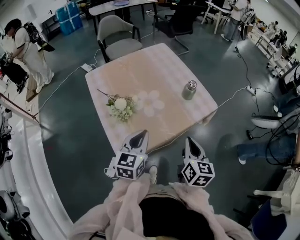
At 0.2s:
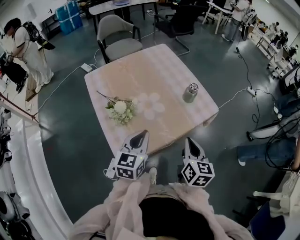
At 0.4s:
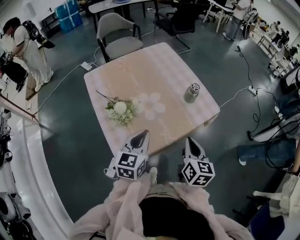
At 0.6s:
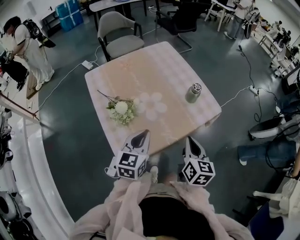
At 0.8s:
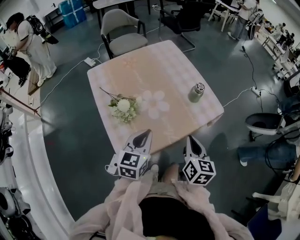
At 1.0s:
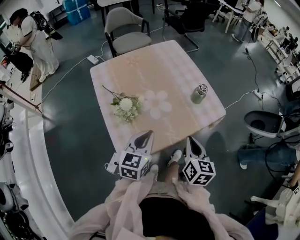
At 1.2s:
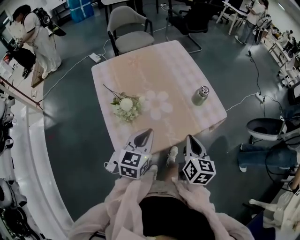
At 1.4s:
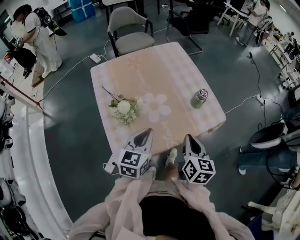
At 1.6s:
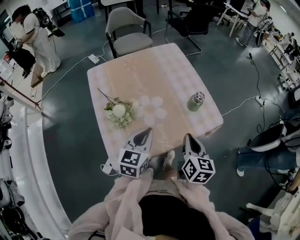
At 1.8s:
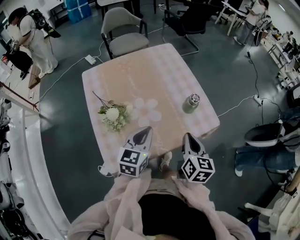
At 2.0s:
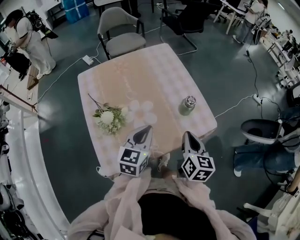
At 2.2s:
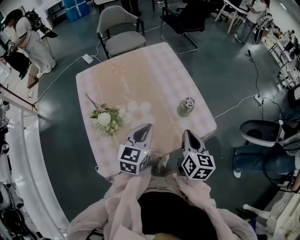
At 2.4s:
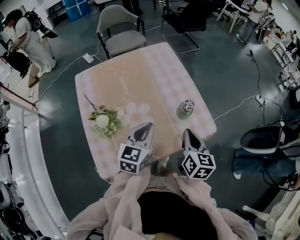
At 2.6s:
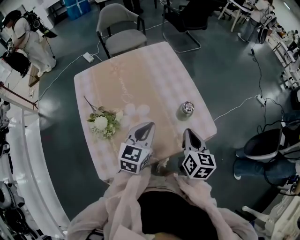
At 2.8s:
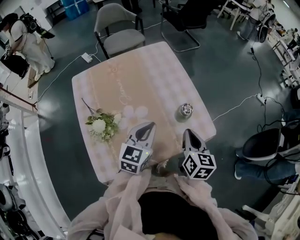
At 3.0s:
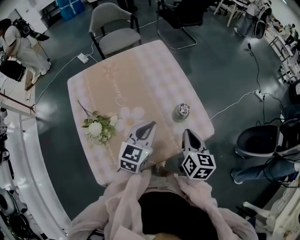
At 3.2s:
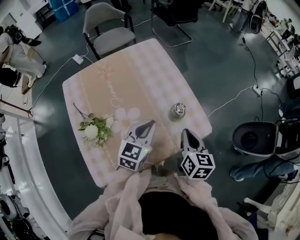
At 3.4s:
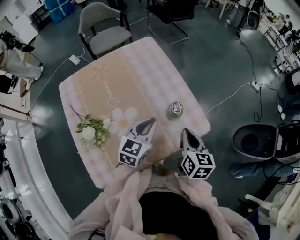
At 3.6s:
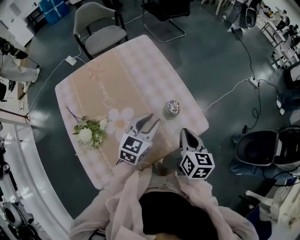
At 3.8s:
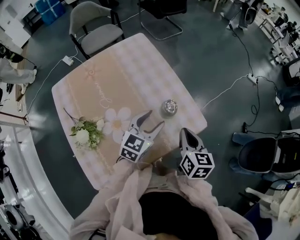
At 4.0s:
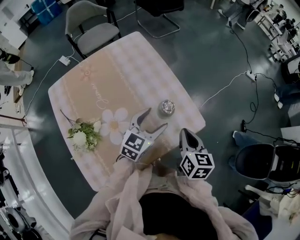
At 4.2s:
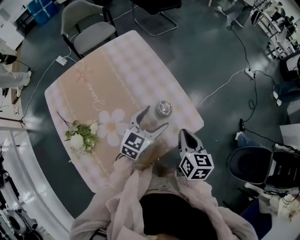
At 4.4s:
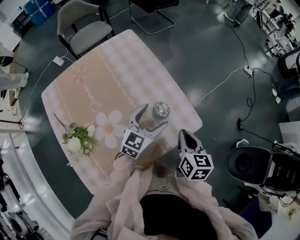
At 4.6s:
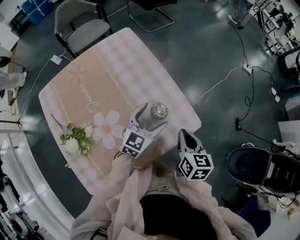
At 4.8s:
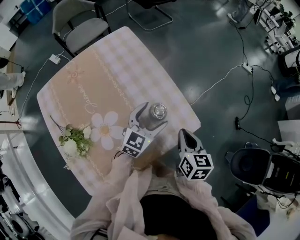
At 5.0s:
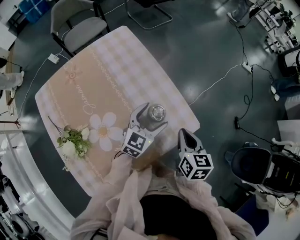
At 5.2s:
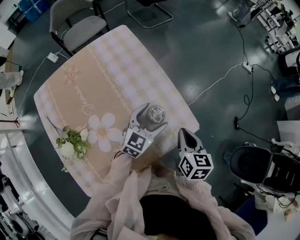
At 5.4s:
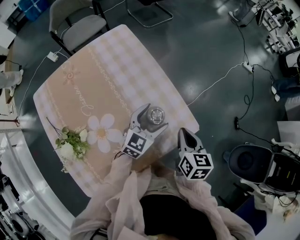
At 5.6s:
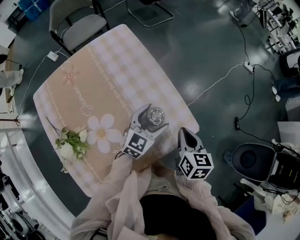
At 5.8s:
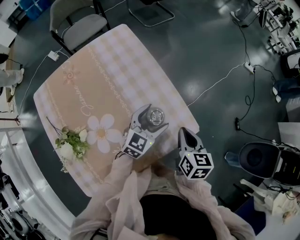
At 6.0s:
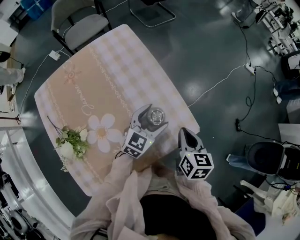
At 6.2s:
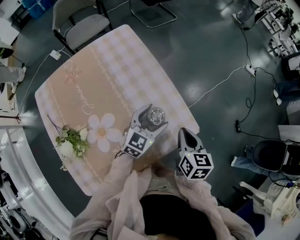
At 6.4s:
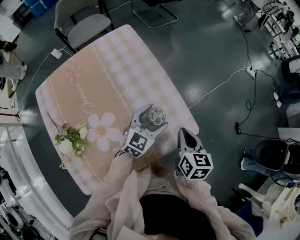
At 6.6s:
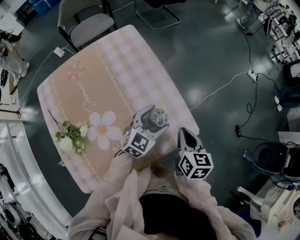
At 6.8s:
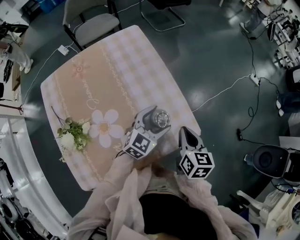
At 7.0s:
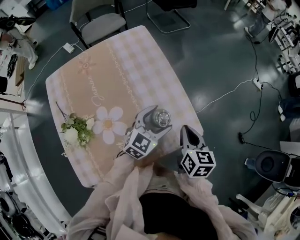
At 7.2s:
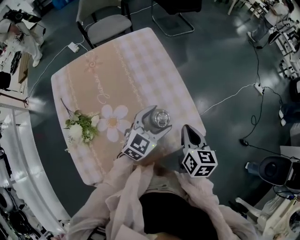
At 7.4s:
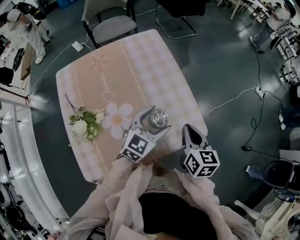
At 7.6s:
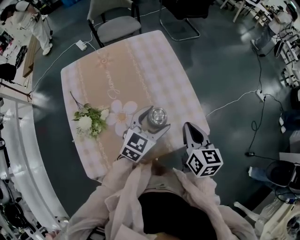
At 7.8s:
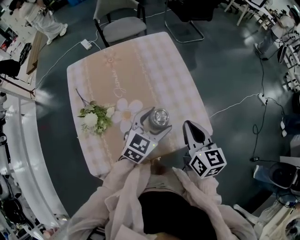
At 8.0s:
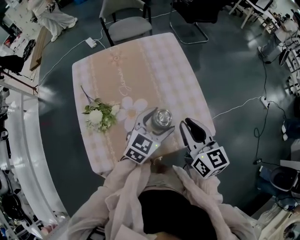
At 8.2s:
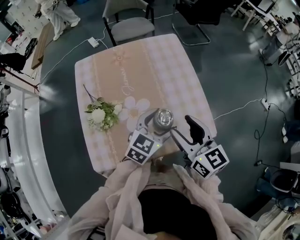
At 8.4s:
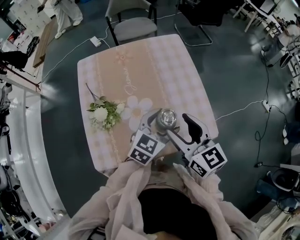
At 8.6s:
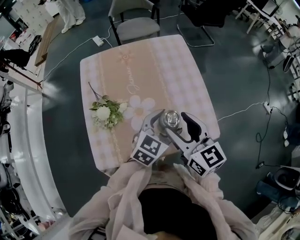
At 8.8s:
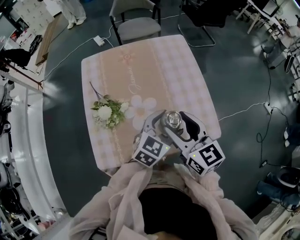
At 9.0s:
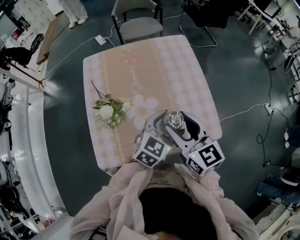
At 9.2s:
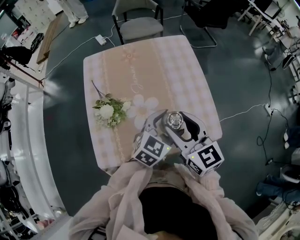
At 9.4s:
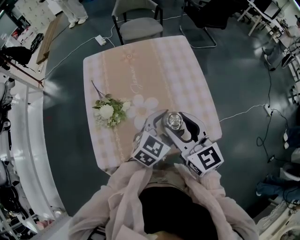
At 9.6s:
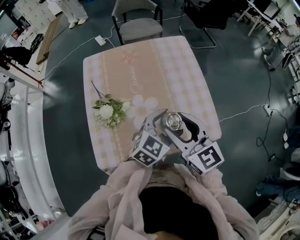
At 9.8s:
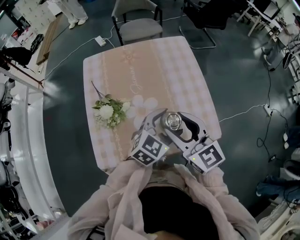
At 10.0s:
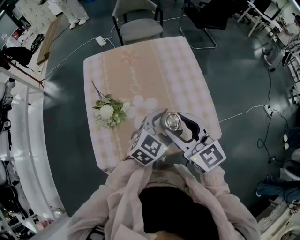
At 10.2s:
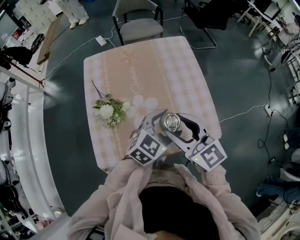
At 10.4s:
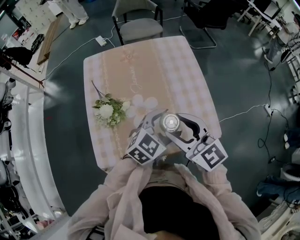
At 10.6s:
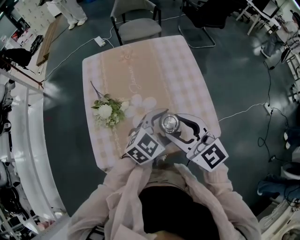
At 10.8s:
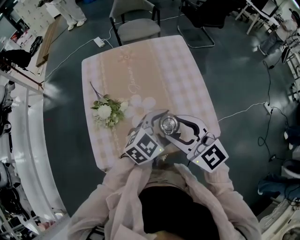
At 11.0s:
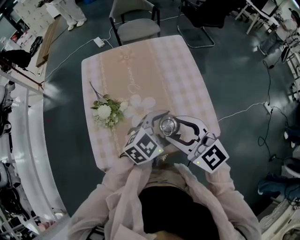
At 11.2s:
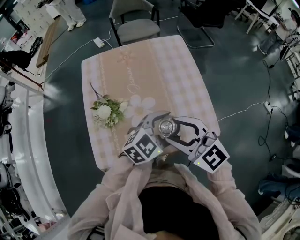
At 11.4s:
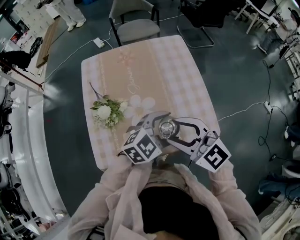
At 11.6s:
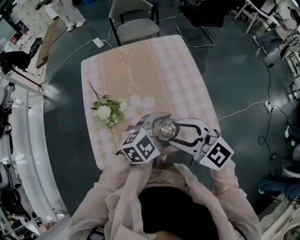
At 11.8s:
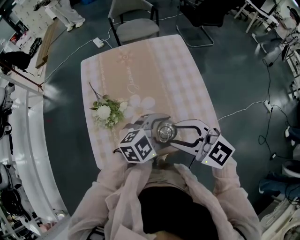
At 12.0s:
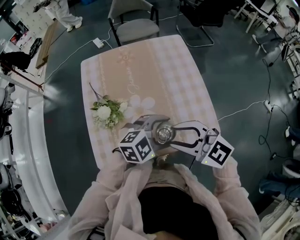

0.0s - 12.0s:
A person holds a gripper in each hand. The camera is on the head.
0.0s - 1.6s: Both grippers move forward, about 10 cm.
1.6s - 3.0s: The two grippers go roughly 15 cm forward and to the right.
3.0s - 4.4s: The left gripper is displaced to the right, forward and downward by roughly 15 cm, and opens its fingers, while the right gripper travels to the right by about 5 cm.
4.4s - 6.0s: The right gripper changes place by approximately 5 cm. Meanwhile the left gripper moves about 5 cm.
6.0s - 7.6s: The left gripper shifts some 15 cm upward, backward and to the left; the right gripper heads upward and to the left, covering roughly 10 cm.
7.6s - 9.0s: The right gripper shifts about 15 cm to the left and upward, swivels approximately 30 degrees, and opens its fingers. Meanwhile the left gripper moves approximately 5 cm.
9.0s - 10.4s: There are only small adjustments of the grippers.
10.4s - 12.0s: The left gripper changes its angle by some 30 degrees. The right gripper changes place by about 5 cm, and turns by approximately 30 degrees.

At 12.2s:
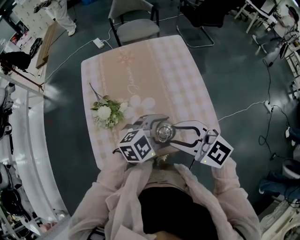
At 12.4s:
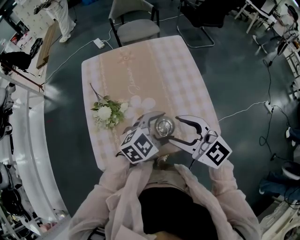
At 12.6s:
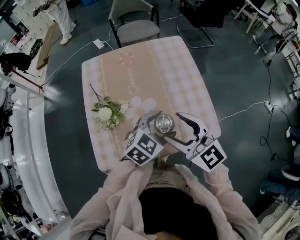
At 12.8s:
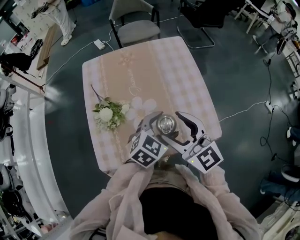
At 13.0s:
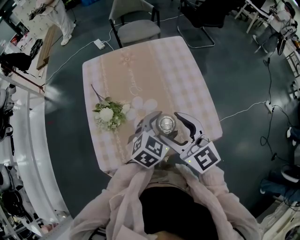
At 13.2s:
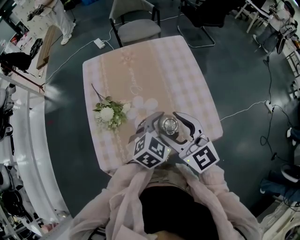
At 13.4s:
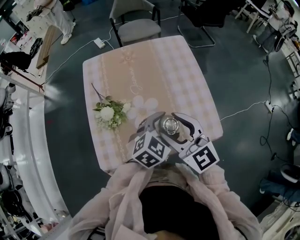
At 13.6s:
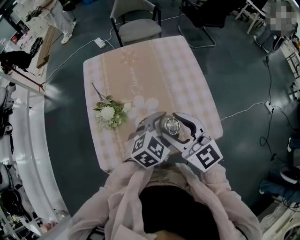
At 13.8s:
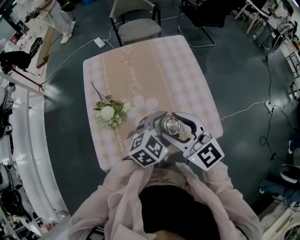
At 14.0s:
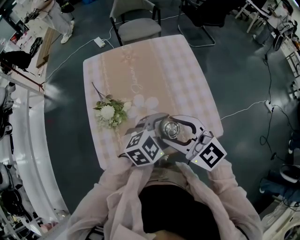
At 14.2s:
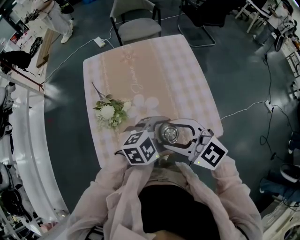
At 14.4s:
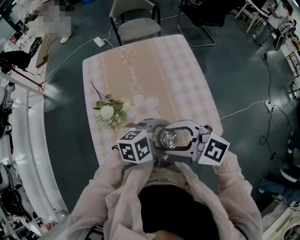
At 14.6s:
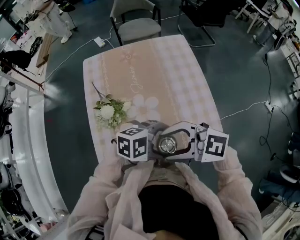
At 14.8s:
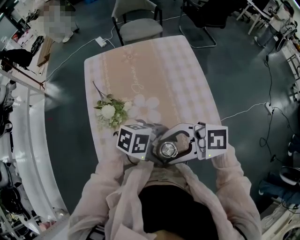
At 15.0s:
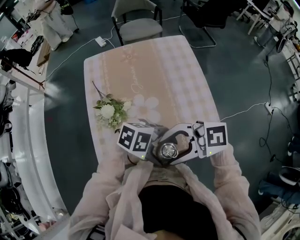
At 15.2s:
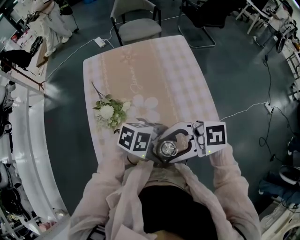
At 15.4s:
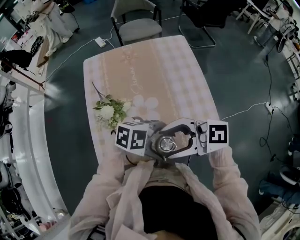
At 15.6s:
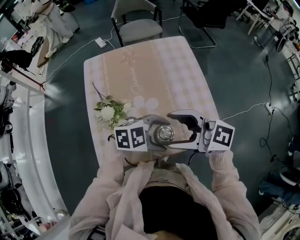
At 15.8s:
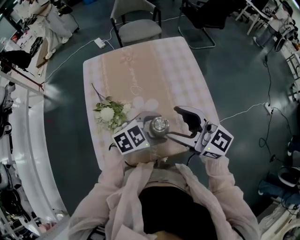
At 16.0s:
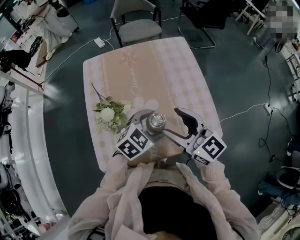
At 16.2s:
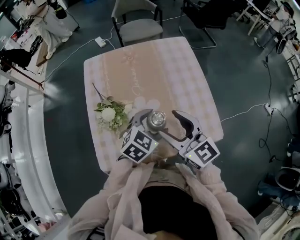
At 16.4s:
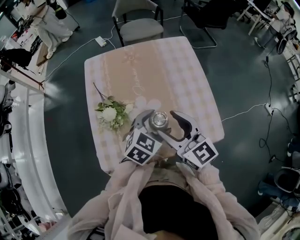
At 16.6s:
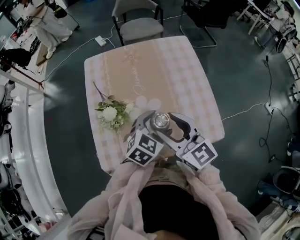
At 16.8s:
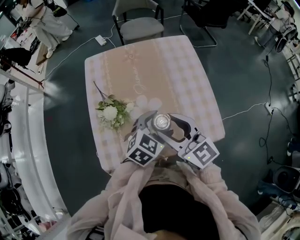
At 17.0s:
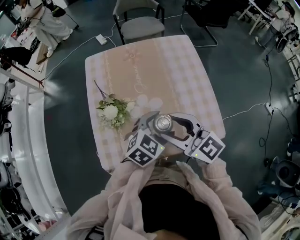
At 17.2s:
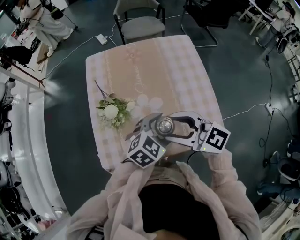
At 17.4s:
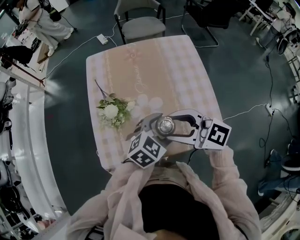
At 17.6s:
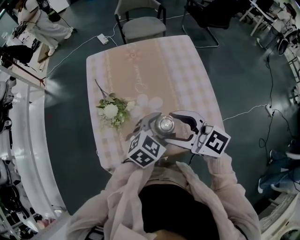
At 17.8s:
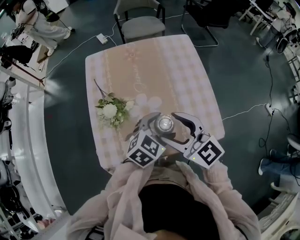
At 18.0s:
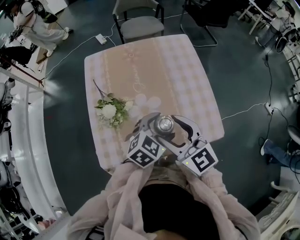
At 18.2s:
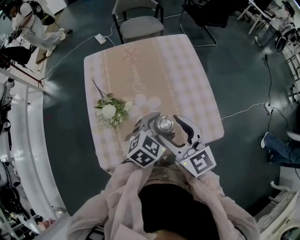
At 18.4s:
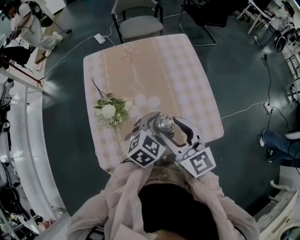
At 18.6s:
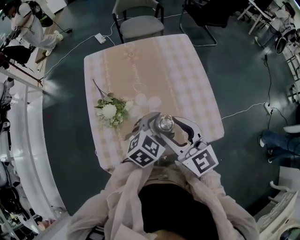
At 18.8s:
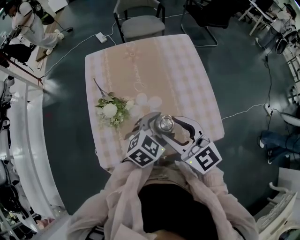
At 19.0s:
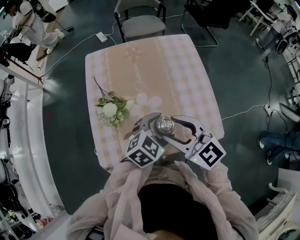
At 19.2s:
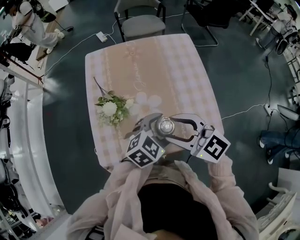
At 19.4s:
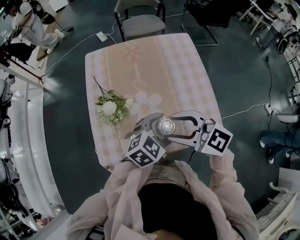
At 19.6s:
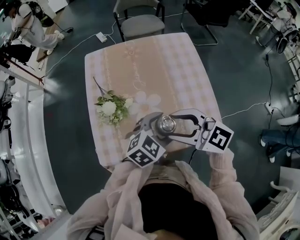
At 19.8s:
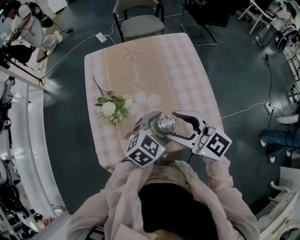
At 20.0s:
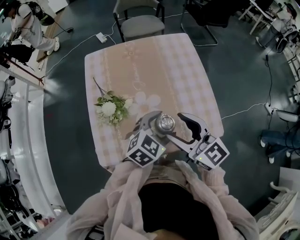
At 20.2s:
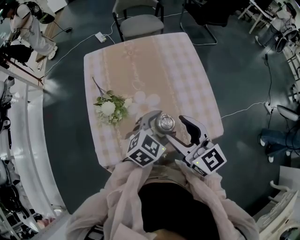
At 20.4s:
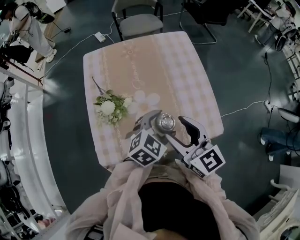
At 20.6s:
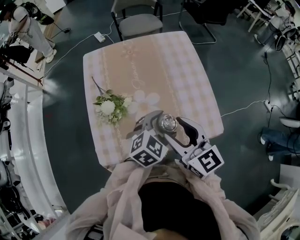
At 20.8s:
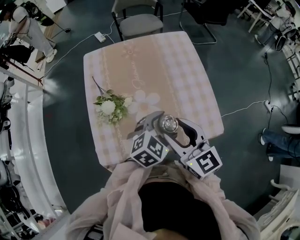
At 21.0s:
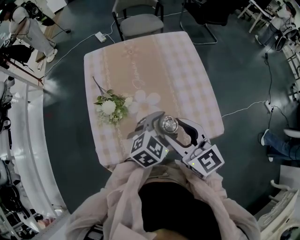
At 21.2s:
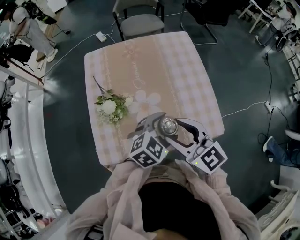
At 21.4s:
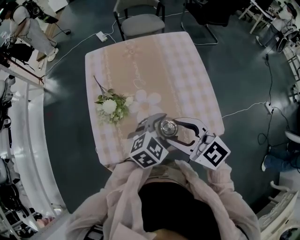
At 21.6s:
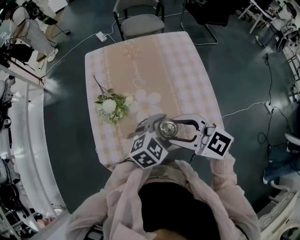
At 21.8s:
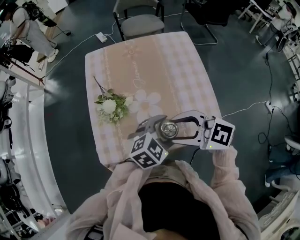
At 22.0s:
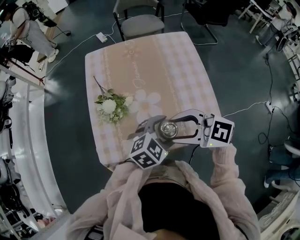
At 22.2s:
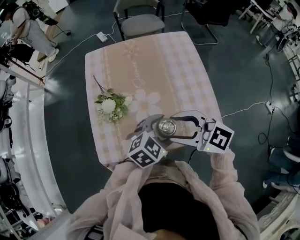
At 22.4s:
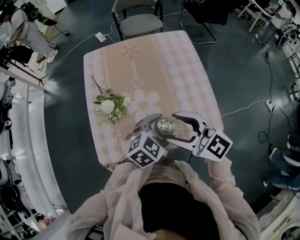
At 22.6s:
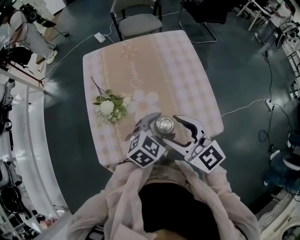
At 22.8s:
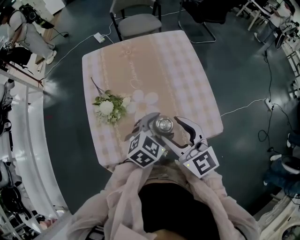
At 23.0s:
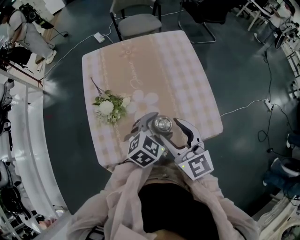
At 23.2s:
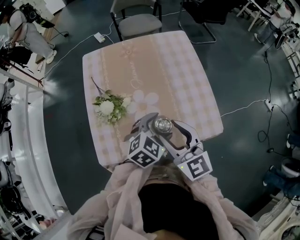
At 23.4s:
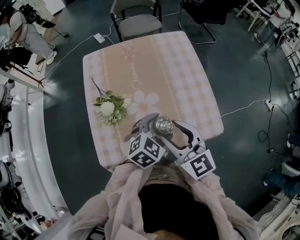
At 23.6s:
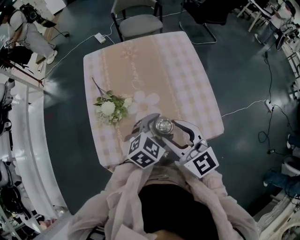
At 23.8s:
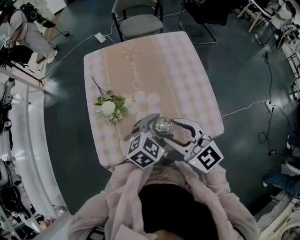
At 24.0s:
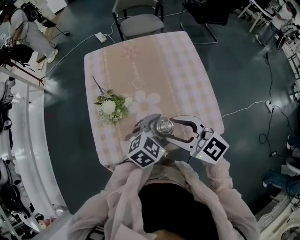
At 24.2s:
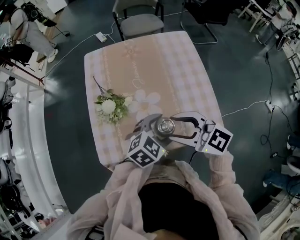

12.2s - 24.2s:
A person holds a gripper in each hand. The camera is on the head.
12.2s - 13.8s: The right gripper ends up some 5 cm from where it was, and turns by roughly 20 degrees. Meanwhile the left gripper swivels approximately 20 degrees.
13.8s - 15.2s: The left gripper changes place by about 10 cm, and rotates some 60 degrees. Meanwhile the right gripper ends up roughly 10 cm from where it was, and changes its angle by roughly 60 degrees.
15.2s - 16.6s: The right gripper ends up approximately 10 cm from where it was, and changes its angle by some 60 degrees; the left gripper ends up roughly 15 cm from where it was, and changes its angle by about 70 degrees.
18.2s - 19.8s: The right gripper swivels about 20 degrees.
22.6s - 24.2s: The right gripper rotates approximately 20 degrees.
